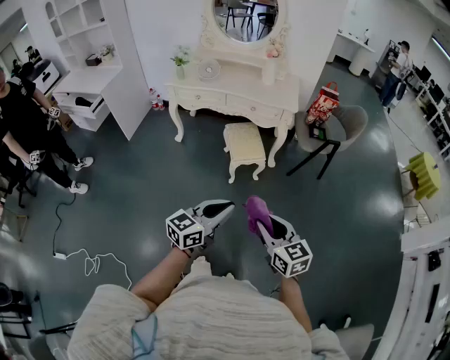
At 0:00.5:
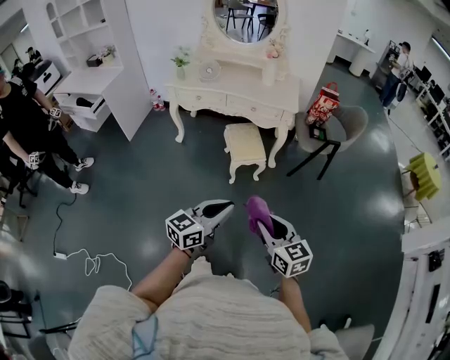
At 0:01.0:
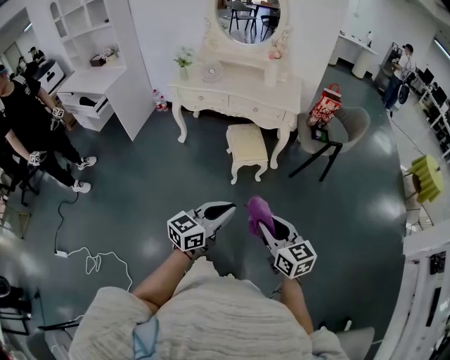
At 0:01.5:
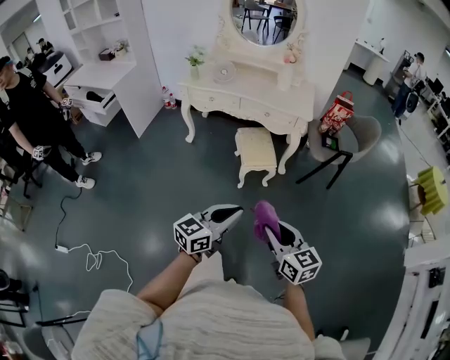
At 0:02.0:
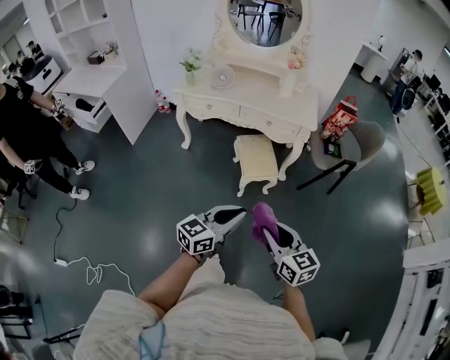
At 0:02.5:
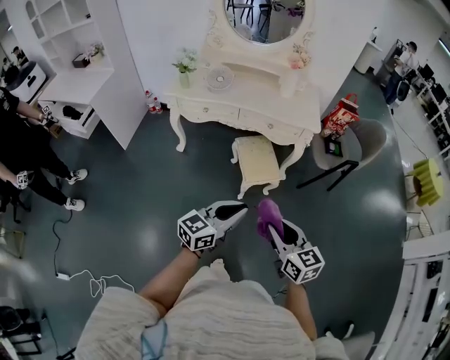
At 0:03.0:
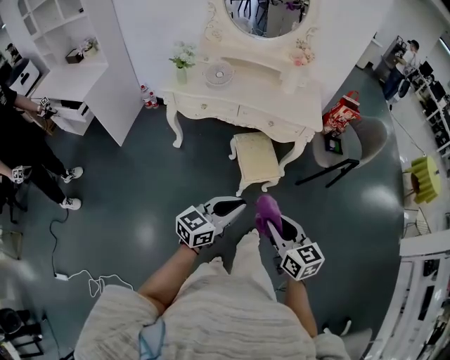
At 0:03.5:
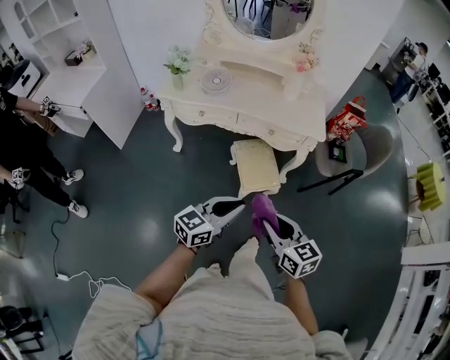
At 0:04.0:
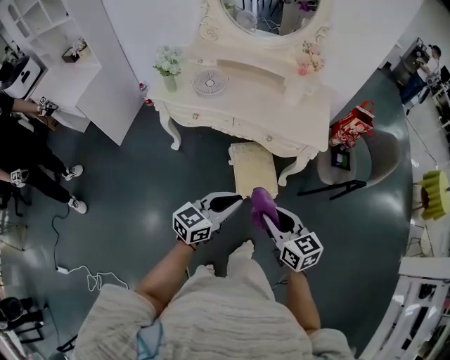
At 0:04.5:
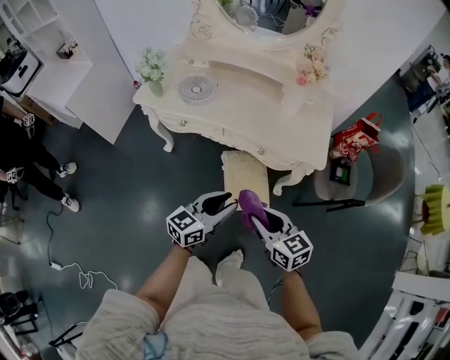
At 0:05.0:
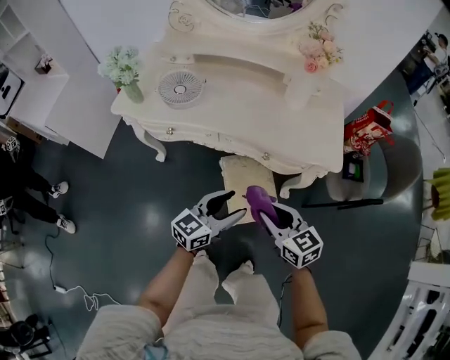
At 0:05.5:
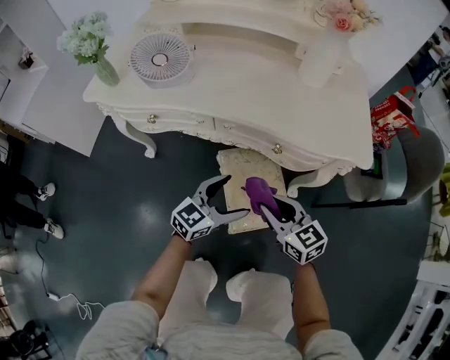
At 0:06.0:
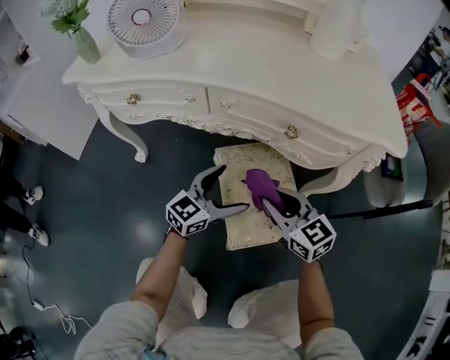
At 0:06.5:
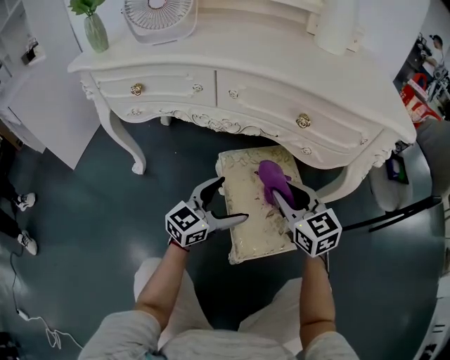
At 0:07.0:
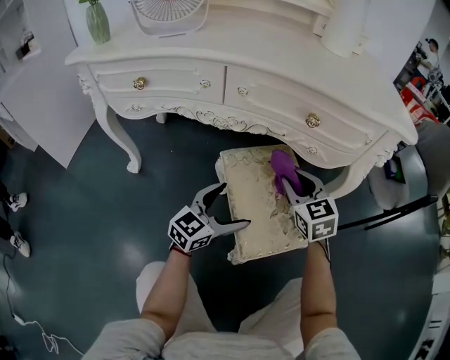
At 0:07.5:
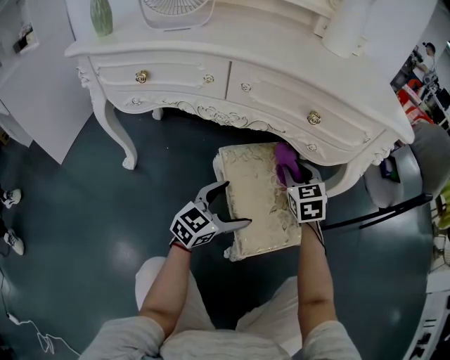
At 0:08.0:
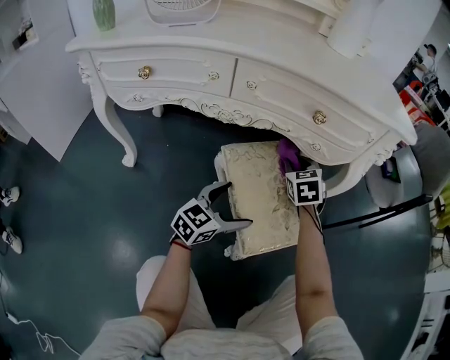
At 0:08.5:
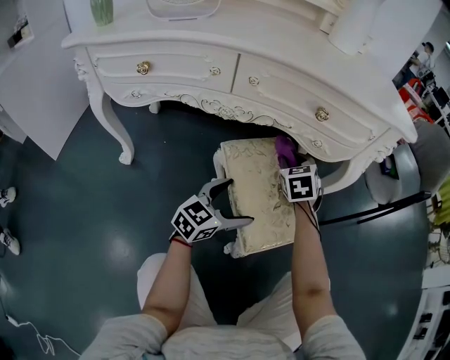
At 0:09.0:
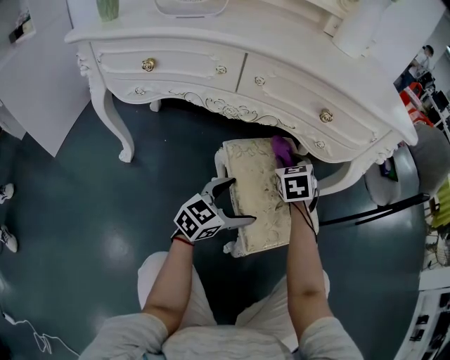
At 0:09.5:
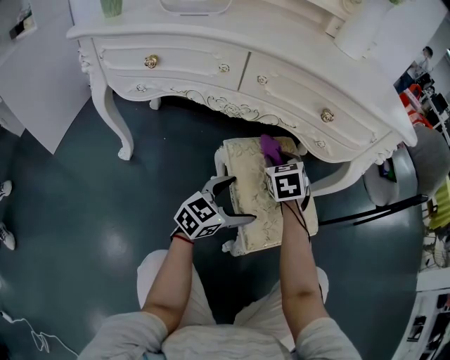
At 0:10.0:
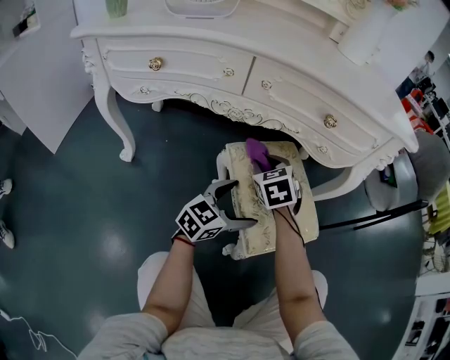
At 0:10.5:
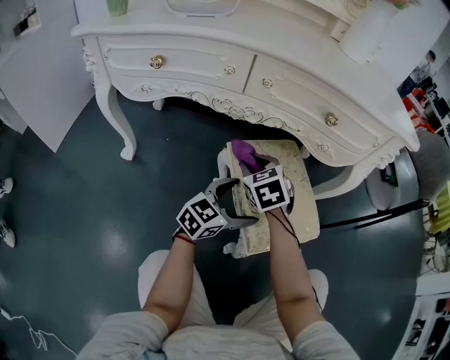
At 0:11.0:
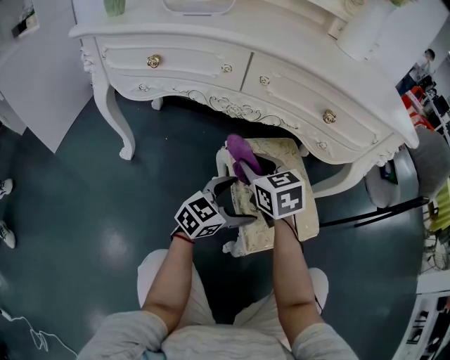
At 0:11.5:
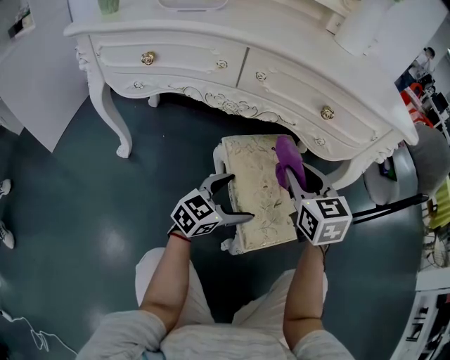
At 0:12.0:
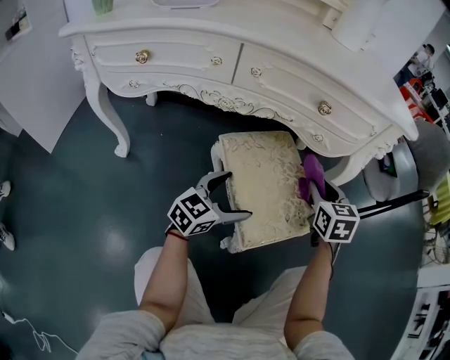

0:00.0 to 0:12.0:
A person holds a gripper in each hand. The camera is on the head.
0:00.0 to 0:02.0: The grippers both shift forward and to the left by approximately 15 cm.
0:02.0 to 0:04.0: The grippers both shift forward by approximately 30 cm.
0:04.0 to 0:06.0: The two grippers go approximately 50 cm downward and forward. The left gripper opens up.
0:06.0 to 0:08.0: The left gripper goes approximately 10 cm downward. Meanwhile the right gripper moves forward and downward, about 20 cm, and turns by approximately 40 degrees.
0:08.0 to 0:10.0: The right gripper is displaced to the left and backward by some 15 cm.
0:10.0 to 0:12.0: The right gripper moves to the right, roughly 20 cm, and changes its angle by approximately 20 degrees.

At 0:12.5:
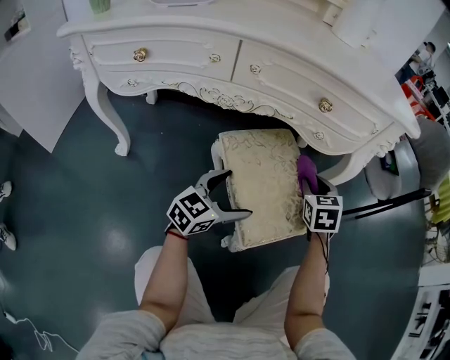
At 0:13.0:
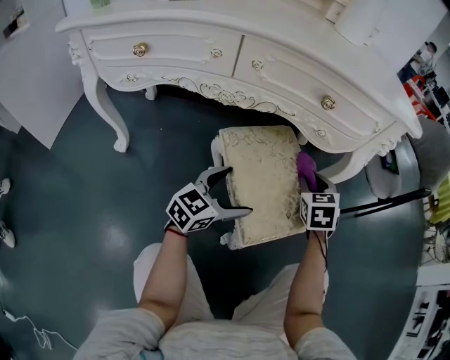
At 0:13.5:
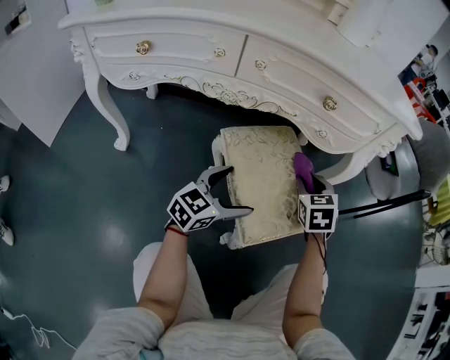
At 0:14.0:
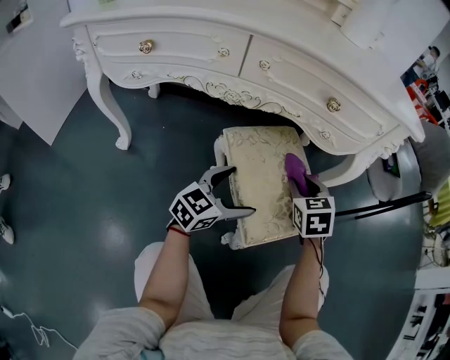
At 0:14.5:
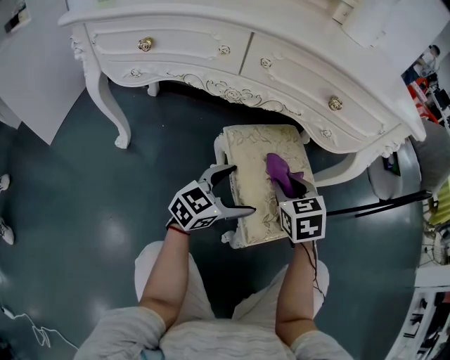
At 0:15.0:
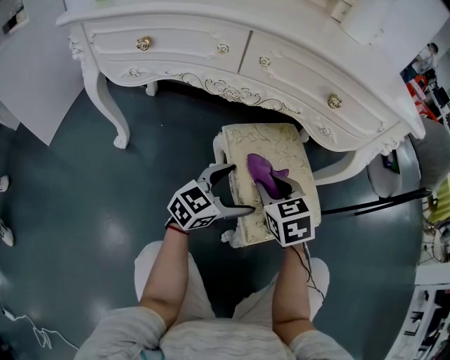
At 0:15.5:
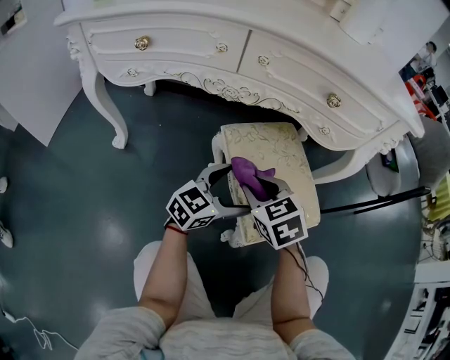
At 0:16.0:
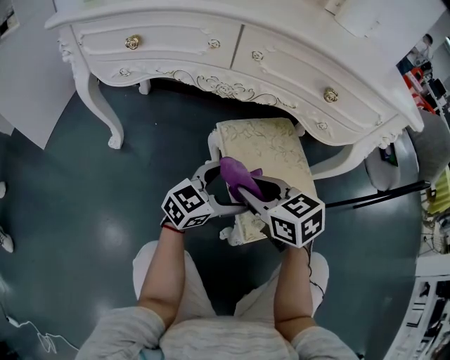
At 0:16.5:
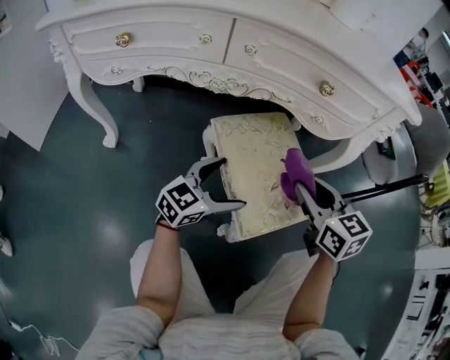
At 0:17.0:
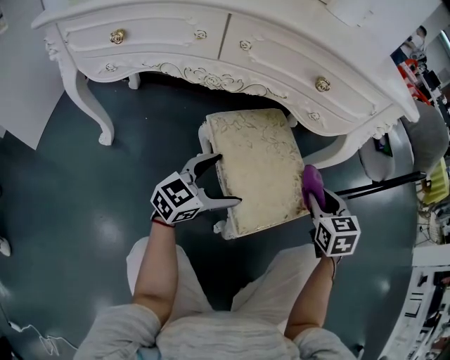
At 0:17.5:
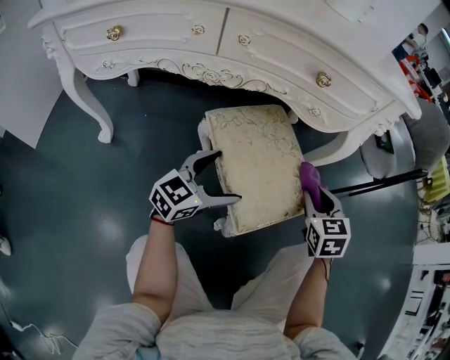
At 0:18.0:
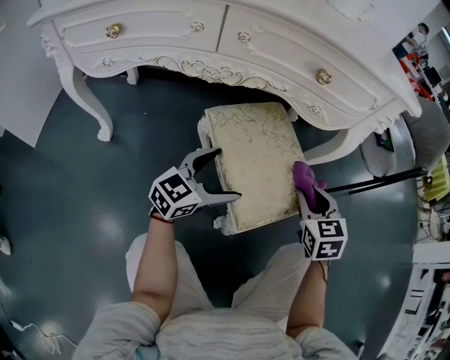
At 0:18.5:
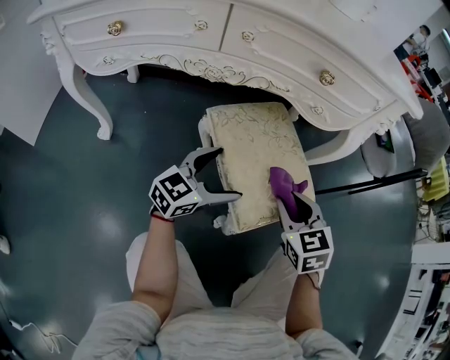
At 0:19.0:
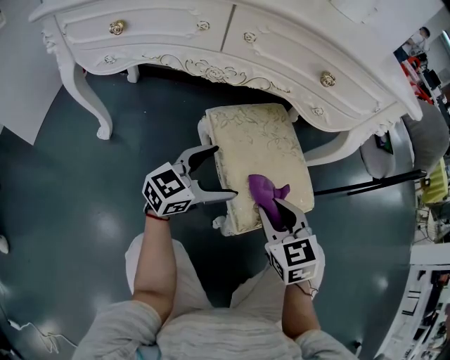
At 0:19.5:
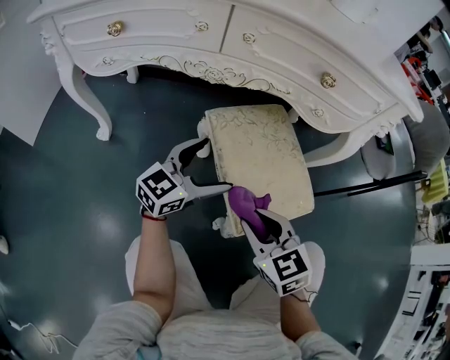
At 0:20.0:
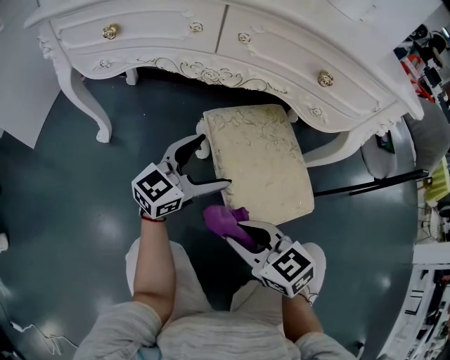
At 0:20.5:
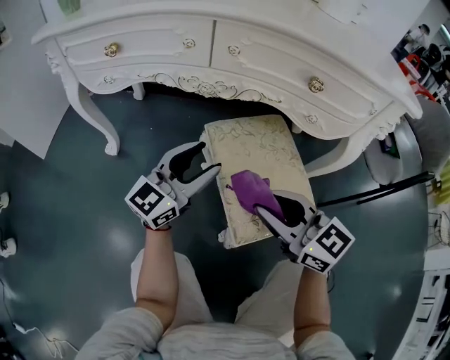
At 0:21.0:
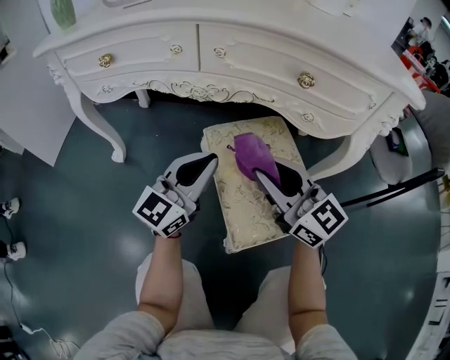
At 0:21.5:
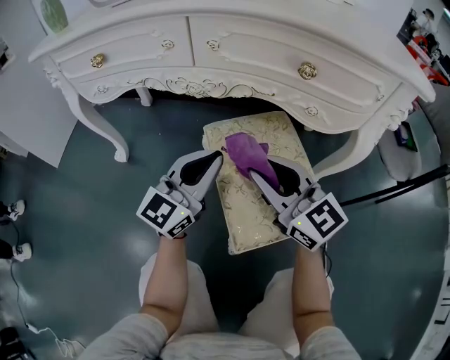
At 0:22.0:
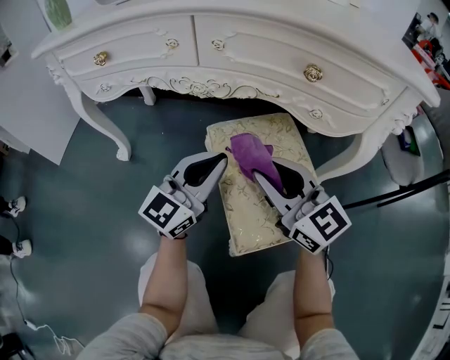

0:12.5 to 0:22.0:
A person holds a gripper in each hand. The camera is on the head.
0:12.5 to 0:14.5: The right gripper goes some 10 cm to the left and backward.
0:14.5 to 0:16.5: The right gripper is displaced upward and to the right by about 10 cm, and turns by approximately 20 degrees.
0:16.5 to 0:18.0: The right gripper travels downward and to the right by some 10 cm, and rotates some 30 degrees.
0:18.0 to 0:20.0: The left gripper shifts by about 5 cm. Meanwhile the right gripper shifts by some 20 cm, and turns by about 40 degrees.
0:20.0 to 0:22.0: The left gripper closes, while the right gripper is displaced forward and upward by approximately 15 cm, and tilts its fingers about 30 degrees upward.

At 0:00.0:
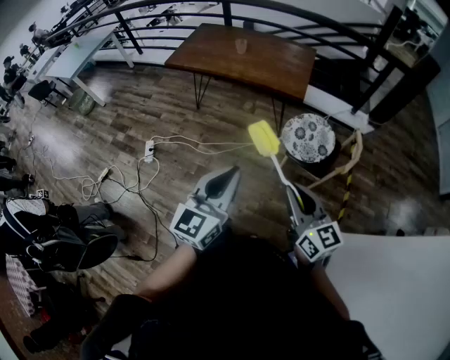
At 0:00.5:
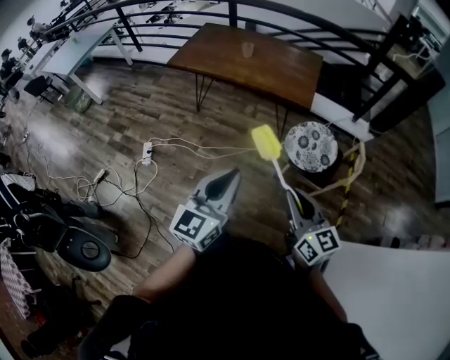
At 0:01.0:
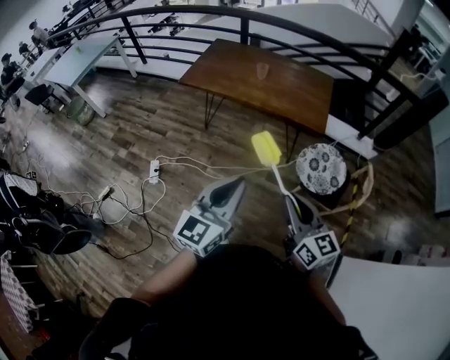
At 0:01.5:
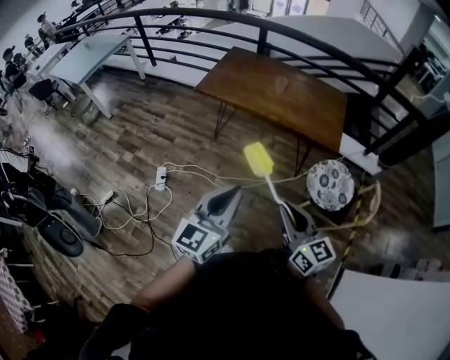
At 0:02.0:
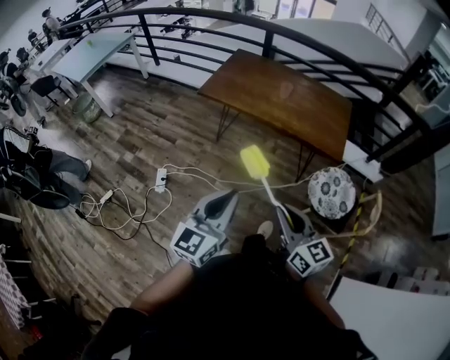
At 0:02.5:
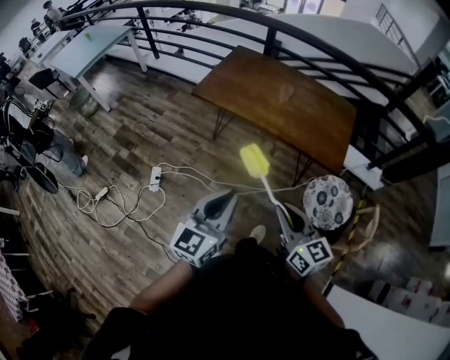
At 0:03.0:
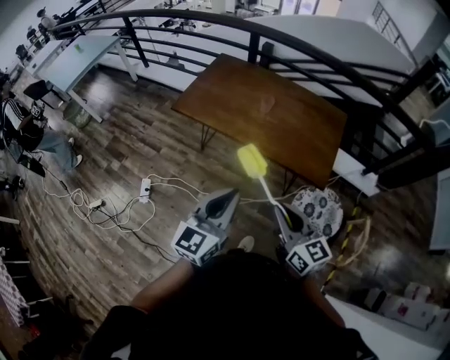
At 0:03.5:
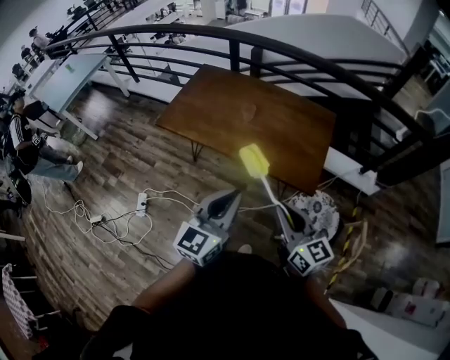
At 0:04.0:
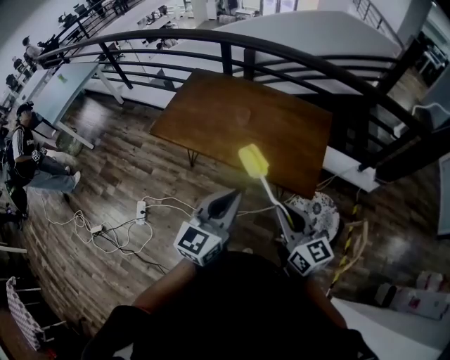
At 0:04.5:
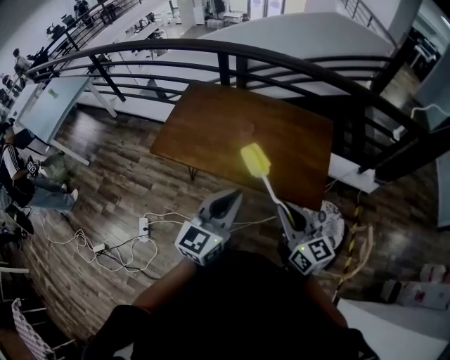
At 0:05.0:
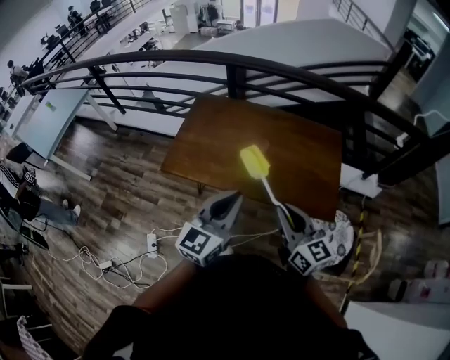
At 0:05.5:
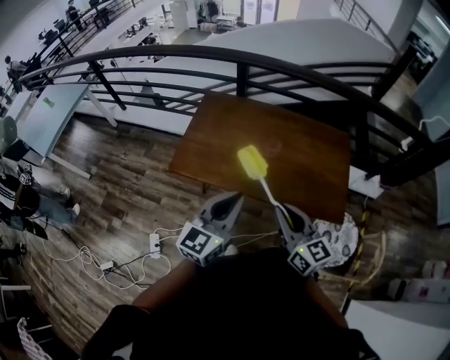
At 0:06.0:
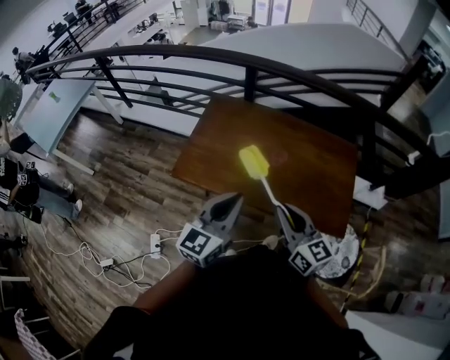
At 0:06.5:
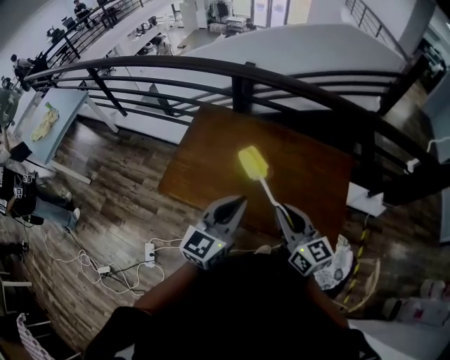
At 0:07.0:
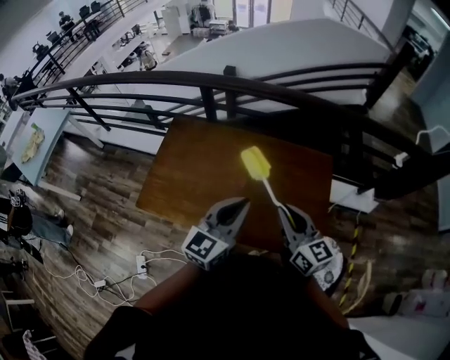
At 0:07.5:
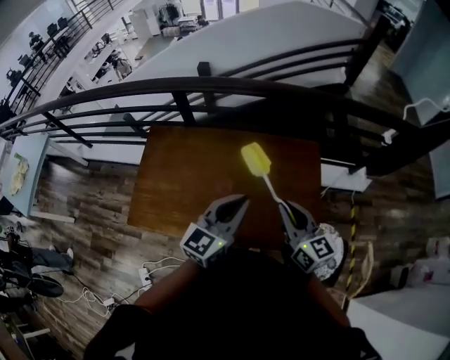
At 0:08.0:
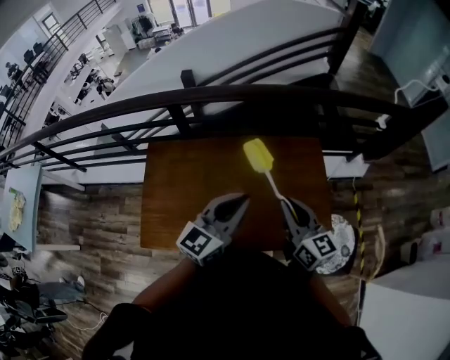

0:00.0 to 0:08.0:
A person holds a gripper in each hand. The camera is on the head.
0:00.0 to 0:02.0: The grippers both shift to the left and forward by some 35 cm.
0:02.0 to 0:04.0: Both grippers travel together forward and to the right, about 40 cm.
0:04.0 to 0:06.0: Both grippers move to the left and forward, about 30 cm.
0:06.0 to 0:08.0: The right gripper moves about 25 cm, and turns by about 20 degrees. Meanwhile the left gripper changes place by approximately 30 cm, and swivels roughly 30 degrees.
